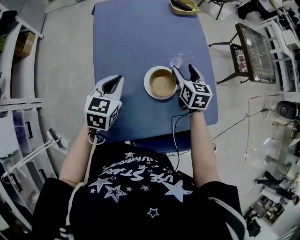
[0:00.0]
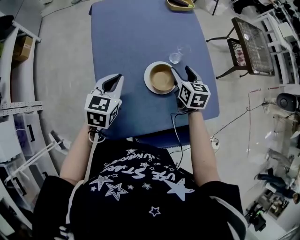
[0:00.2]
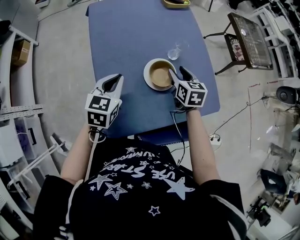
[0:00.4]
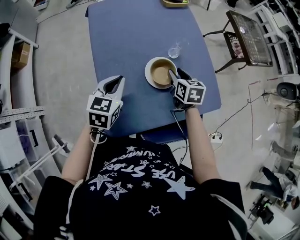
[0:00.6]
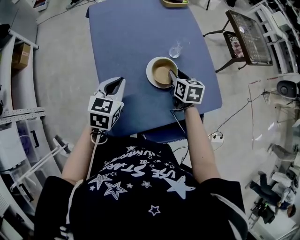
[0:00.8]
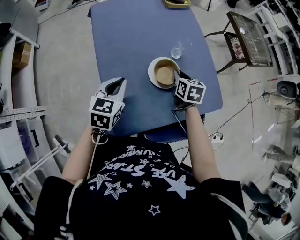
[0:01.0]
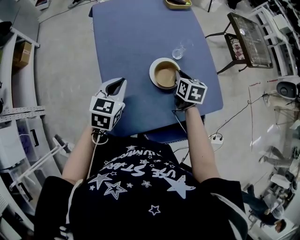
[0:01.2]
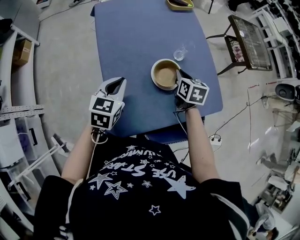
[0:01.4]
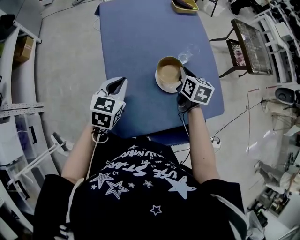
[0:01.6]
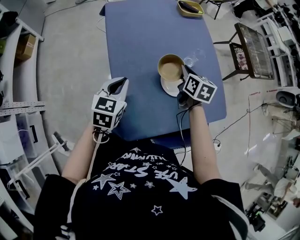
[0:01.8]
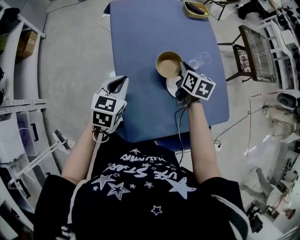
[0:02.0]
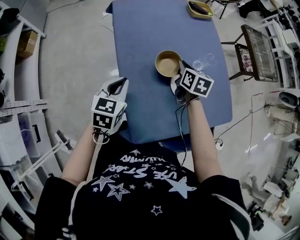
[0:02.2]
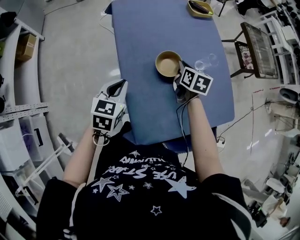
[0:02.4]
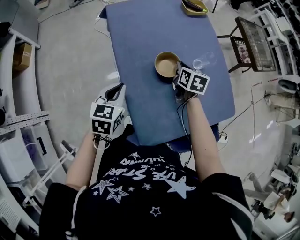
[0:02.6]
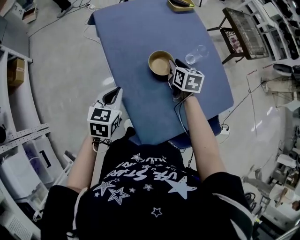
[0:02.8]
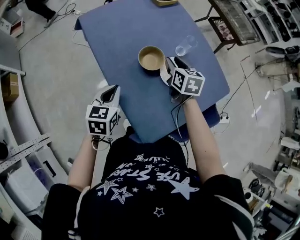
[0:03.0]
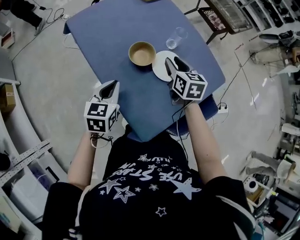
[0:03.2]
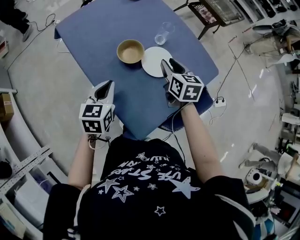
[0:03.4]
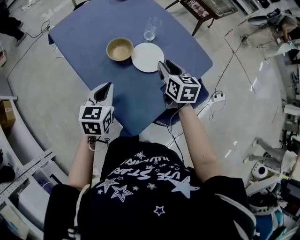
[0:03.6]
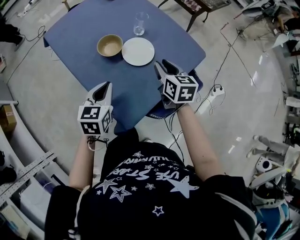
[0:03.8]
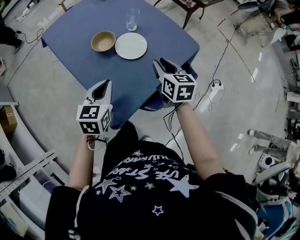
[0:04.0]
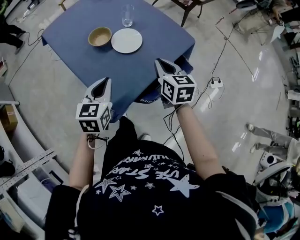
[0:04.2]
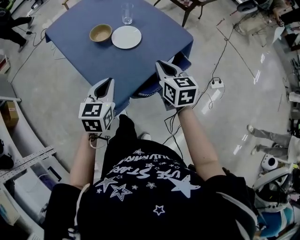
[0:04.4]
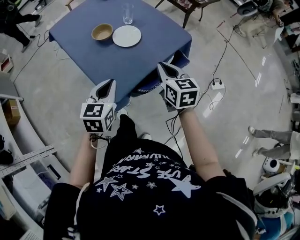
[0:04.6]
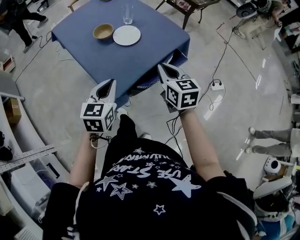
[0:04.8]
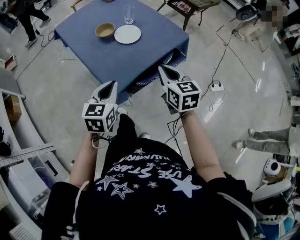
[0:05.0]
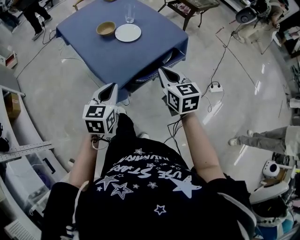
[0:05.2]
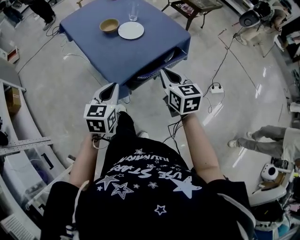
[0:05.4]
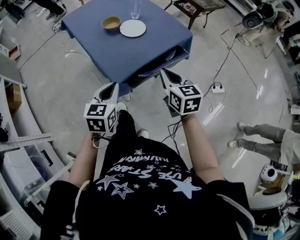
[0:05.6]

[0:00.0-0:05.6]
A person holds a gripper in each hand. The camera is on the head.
0:00.0 to 0:01.4: The right gripper goes some 5 cm backward, and closes.
0:01.4 to 0:02.8: The right gripper moves to the left and forward, approximately 10 cm, and opens its fingers; the left gripper moves to the left, approximately 10 cm.
0:02.8 to 0:04.2: The left gripper shifts some 20 cm to the right and backward; the right gripper moves backward and to the right, some 30 cm, and closes its fingers.
0:04.2 to 0:05.6: Both grippers move backward, roughly 20 cm.

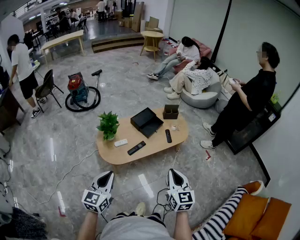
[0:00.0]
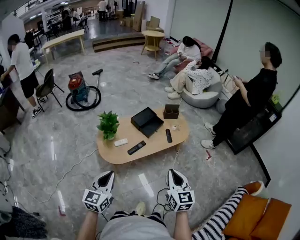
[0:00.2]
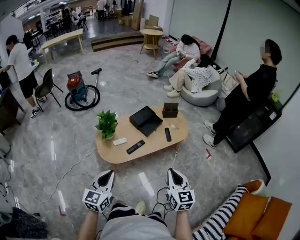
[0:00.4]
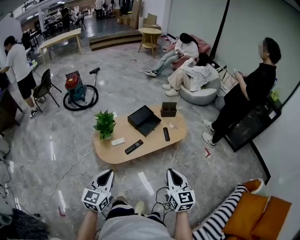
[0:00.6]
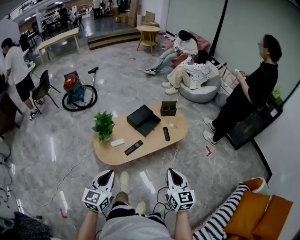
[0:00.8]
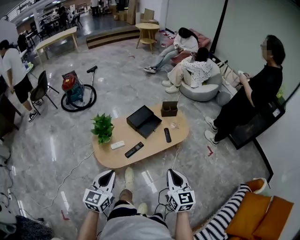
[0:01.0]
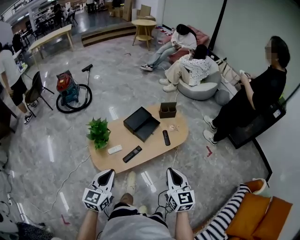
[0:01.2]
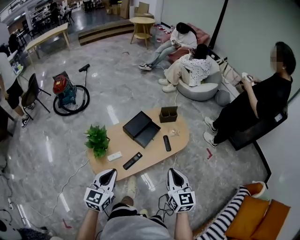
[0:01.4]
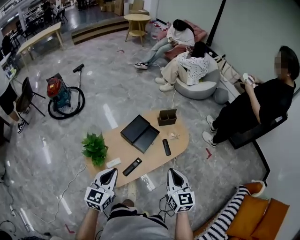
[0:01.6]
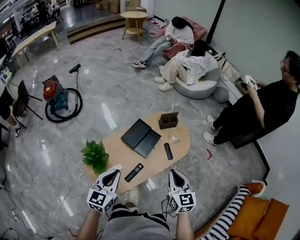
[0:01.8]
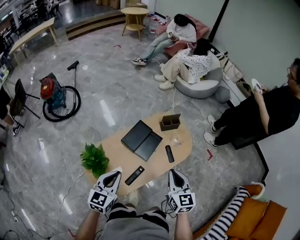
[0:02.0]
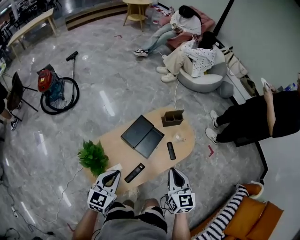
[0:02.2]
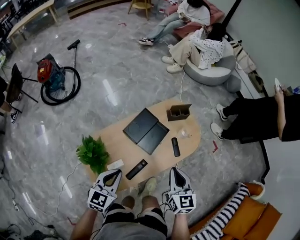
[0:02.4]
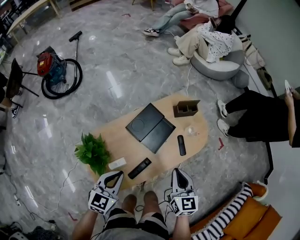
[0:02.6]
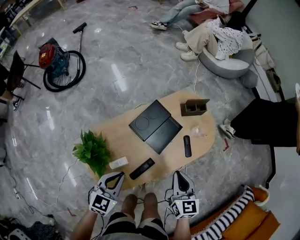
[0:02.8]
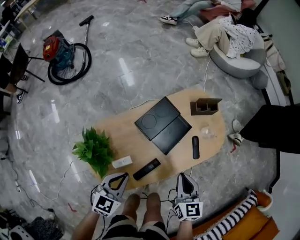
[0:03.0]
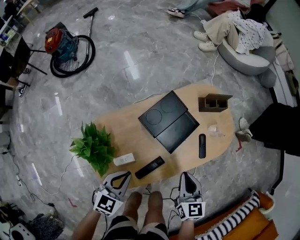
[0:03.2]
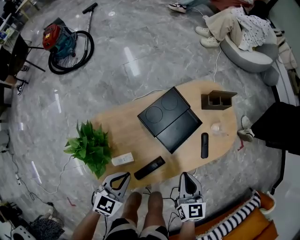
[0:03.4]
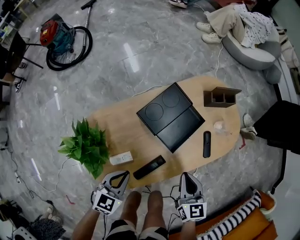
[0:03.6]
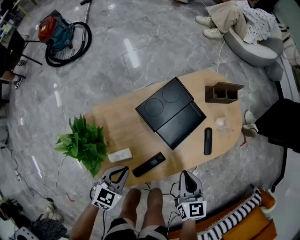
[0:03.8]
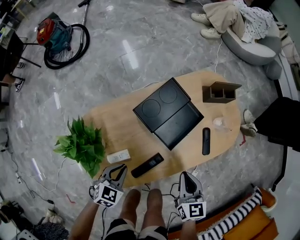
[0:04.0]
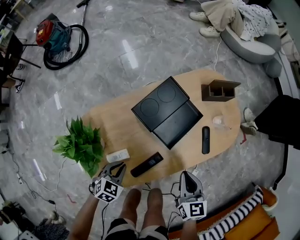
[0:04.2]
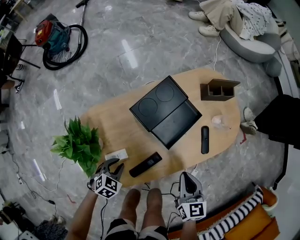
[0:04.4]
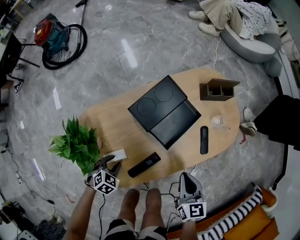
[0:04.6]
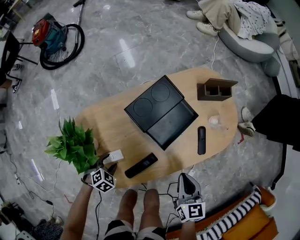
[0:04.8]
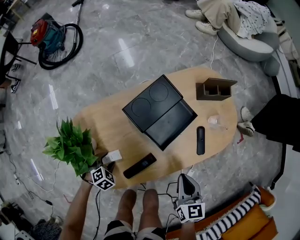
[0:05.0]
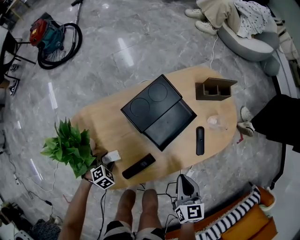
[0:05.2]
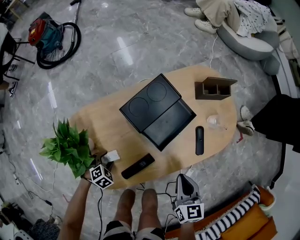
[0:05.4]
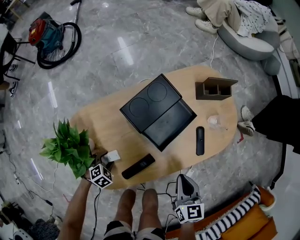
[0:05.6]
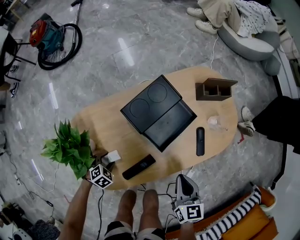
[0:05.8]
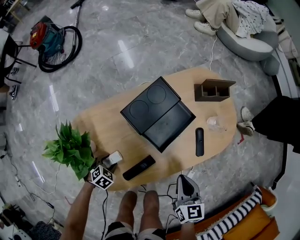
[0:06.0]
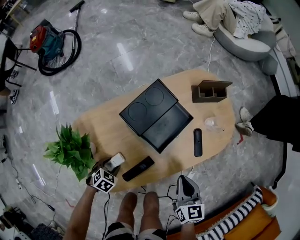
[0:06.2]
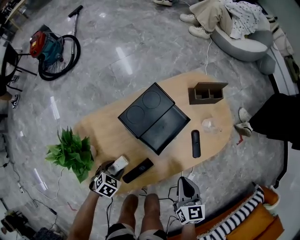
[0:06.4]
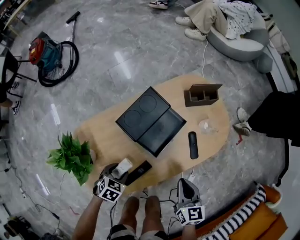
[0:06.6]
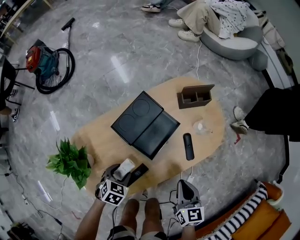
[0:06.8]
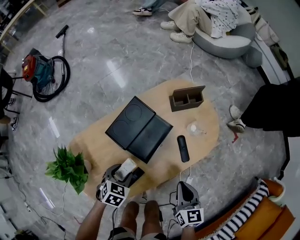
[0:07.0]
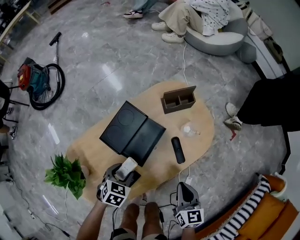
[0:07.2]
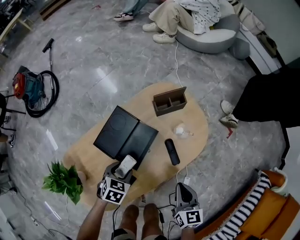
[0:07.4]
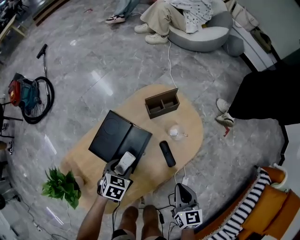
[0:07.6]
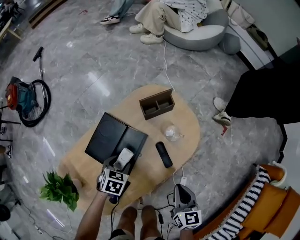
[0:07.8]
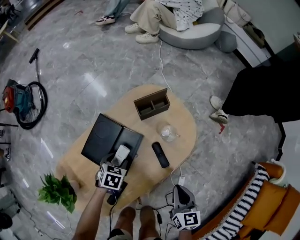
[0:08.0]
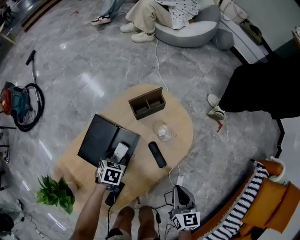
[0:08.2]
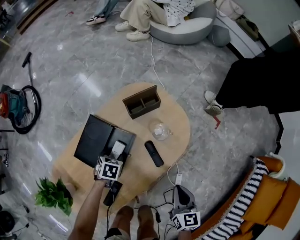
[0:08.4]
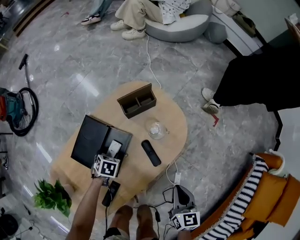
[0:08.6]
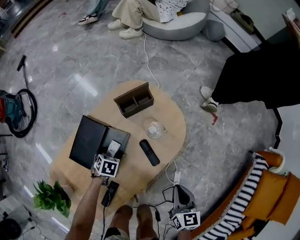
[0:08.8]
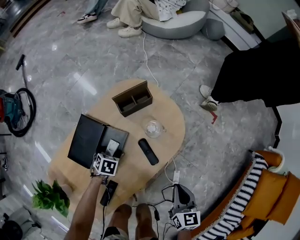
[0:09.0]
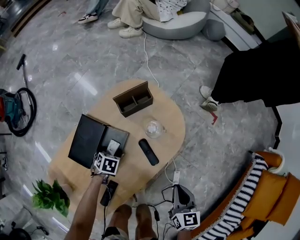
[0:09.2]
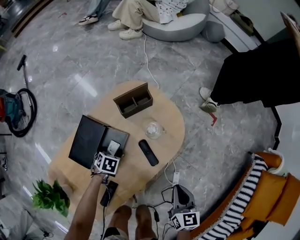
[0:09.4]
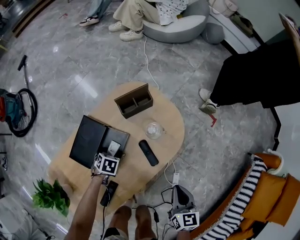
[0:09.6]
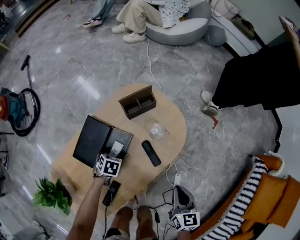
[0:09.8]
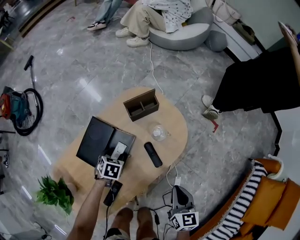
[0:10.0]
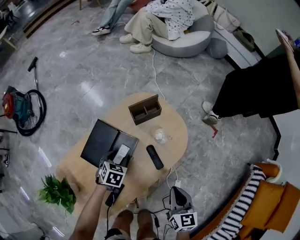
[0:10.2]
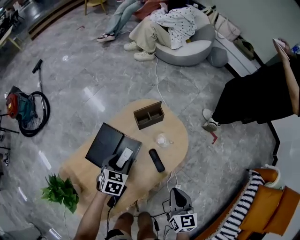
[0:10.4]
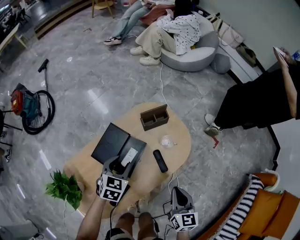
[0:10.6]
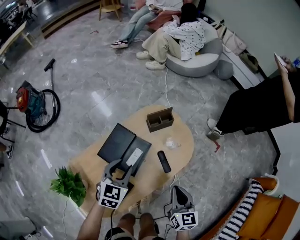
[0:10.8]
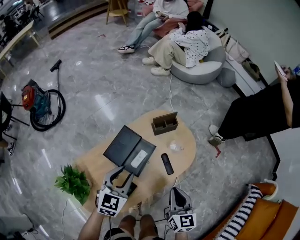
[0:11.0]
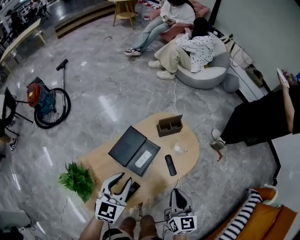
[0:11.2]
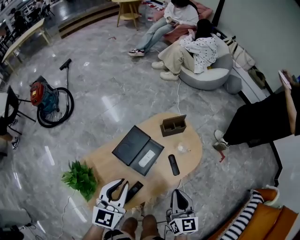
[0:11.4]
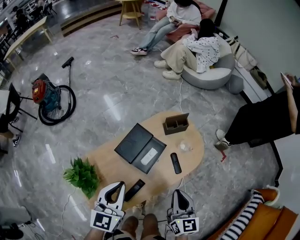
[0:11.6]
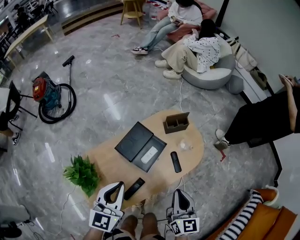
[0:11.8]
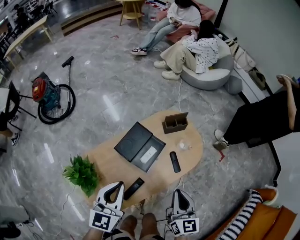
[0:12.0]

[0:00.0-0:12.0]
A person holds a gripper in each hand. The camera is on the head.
0:00.0 to 0:01.6: The two grippers go some 30 cm forward.
0:01.6 to 0:03.0: The right gripper goes approximately 30 cm downward, forward and to the left, while the left gripper heads downward and forward, covering roughly 25 cm.
0:03.0 to 0:04.4: The left gripper goes approximately 25 cm downward, and rotates about 30 degrees. The right gripper shifts some 10 cm downward.
0:04.4 to 0:06.0: The left gripper goes roughly 10 cm downward, and opens its fingers.
0:06.0 to 0:07.6: The left gripper shifts by approximately 30 cm. The right gripper moves about 15 cm.
0:07.6 to 0:09.0: The right gripper moves about 10 cm. The left gripper travels downward by roughly 10 cm.
0:09.0 to 0:10.4: The left gripper shifts approximately 20 cm upward, and turns by approximately 20 degrees, while the right gripper travels upward by approximately 5 cm.
0:10.4 to 0:12.0: The right gripper goes some 15 cm upward and to the left. Meanwhile the left gripper is displaced upward and backward by some 30 cm, tilts its fingers some 40 degrees upward, and closes up.

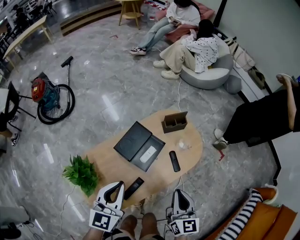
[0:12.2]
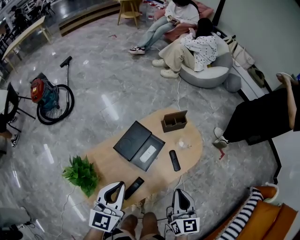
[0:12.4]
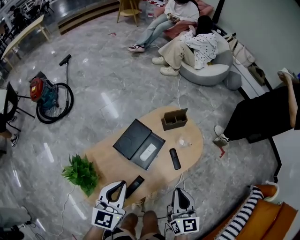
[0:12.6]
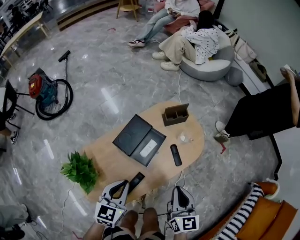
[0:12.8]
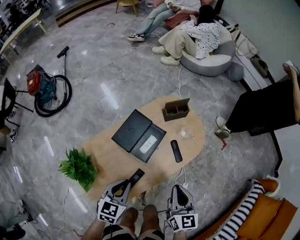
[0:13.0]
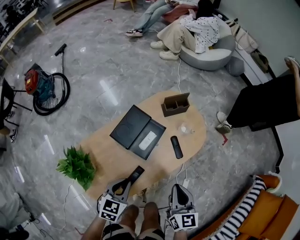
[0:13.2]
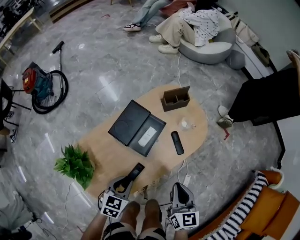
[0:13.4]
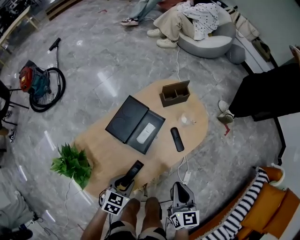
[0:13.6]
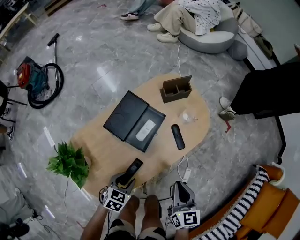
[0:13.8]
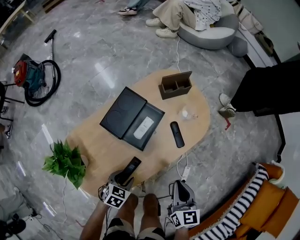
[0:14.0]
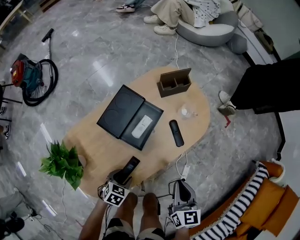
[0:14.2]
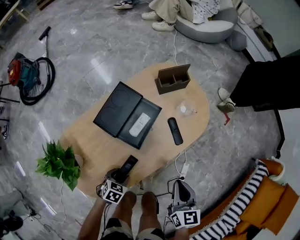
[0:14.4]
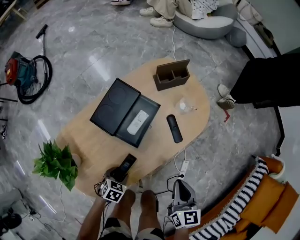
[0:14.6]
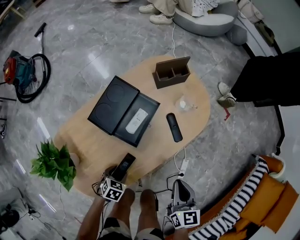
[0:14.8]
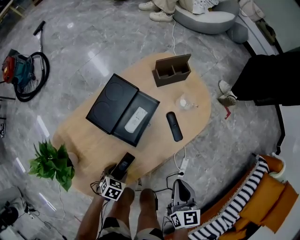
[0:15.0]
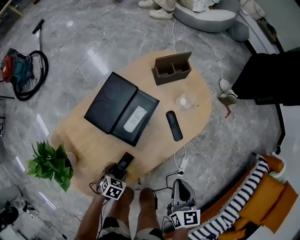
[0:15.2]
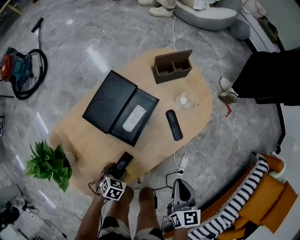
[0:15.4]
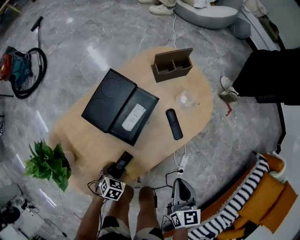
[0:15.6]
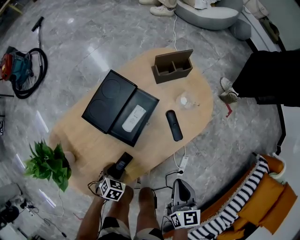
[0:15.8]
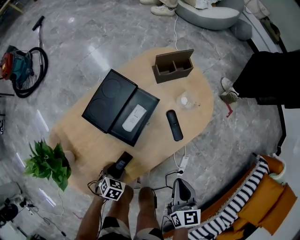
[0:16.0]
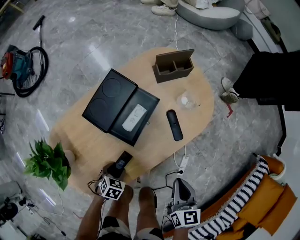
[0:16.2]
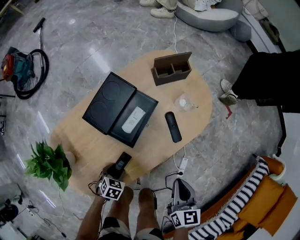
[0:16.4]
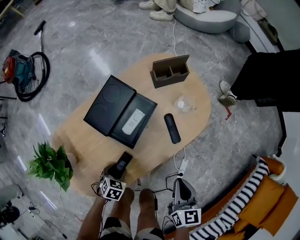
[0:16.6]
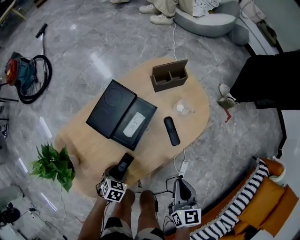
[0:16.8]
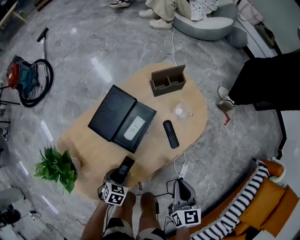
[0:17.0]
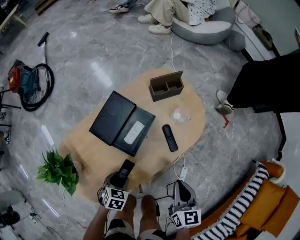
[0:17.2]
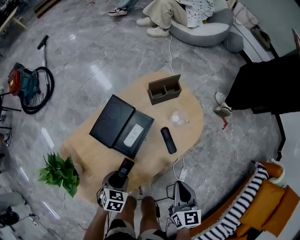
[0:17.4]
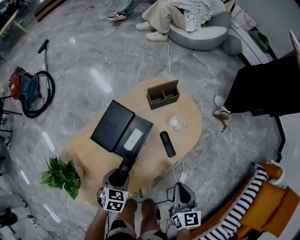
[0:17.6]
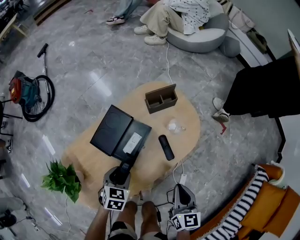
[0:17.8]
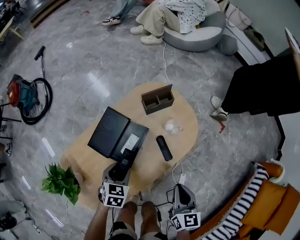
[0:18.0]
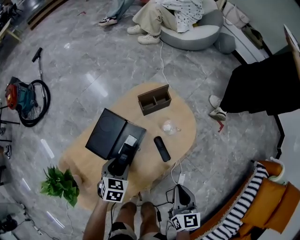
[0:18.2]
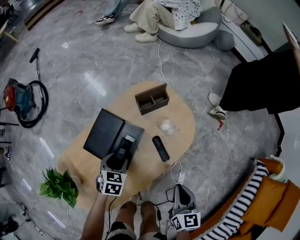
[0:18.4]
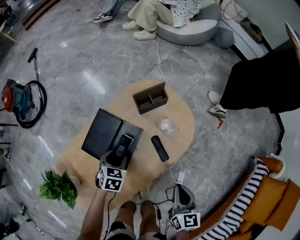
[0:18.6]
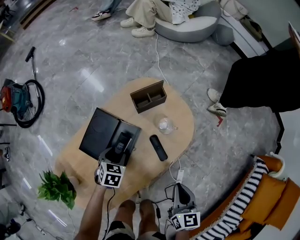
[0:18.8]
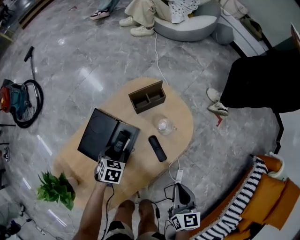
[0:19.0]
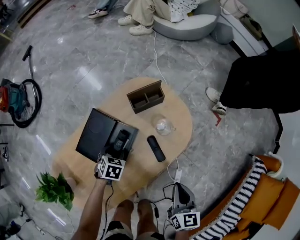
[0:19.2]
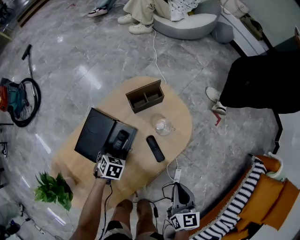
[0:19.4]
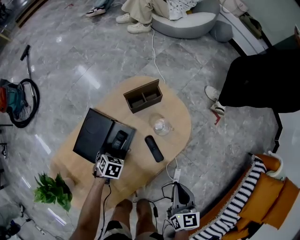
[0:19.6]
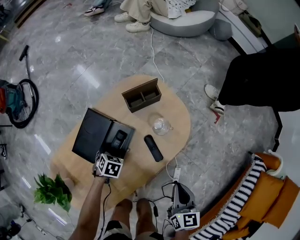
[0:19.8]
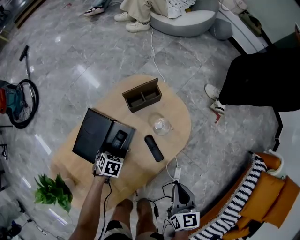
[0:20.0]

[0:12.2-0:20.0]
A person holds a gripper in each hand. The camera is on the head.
0:12.2 to 0:13.8: The left gripper is displaced downward by some 30 cm, angles its fingers downward, by roughly 40 degrees, and opens up. The right gripper moves downward, roughly 15 cm.
0:13.8 to 0:15.4: The right gripper goes some 5 cm downward. Meanwhile the left gripper goes about 15 cm downward.
0:15.4 to 0:16.8: The grippers move only a little.
0:16.8 to 0:18.4: The right gripper shifts some 5 cm forward, while the left gripper travels forward and upward by roughly 25 cm.
0:18.4 to 0:20.0: The left gripper travels downward by about 10 cm.
